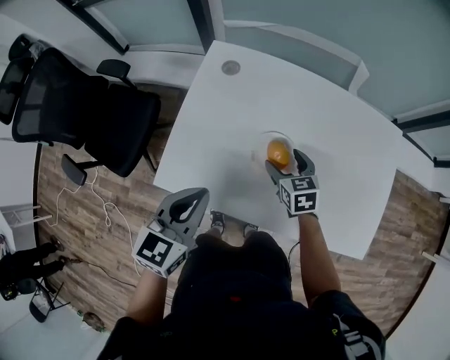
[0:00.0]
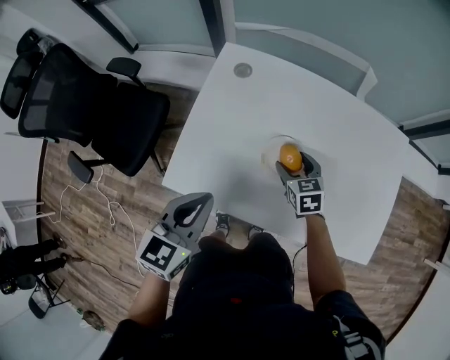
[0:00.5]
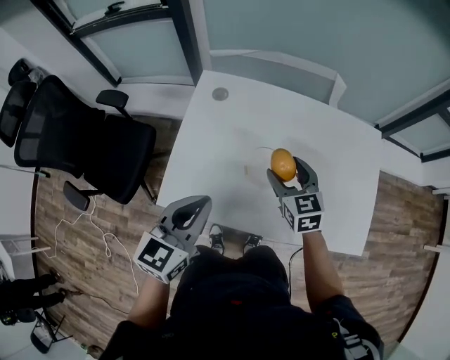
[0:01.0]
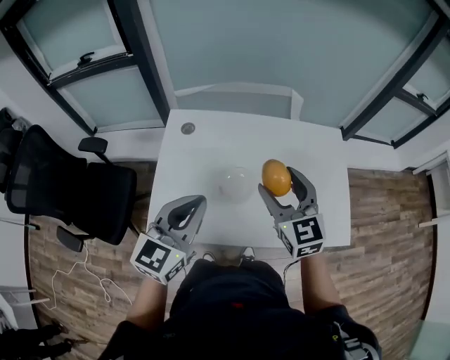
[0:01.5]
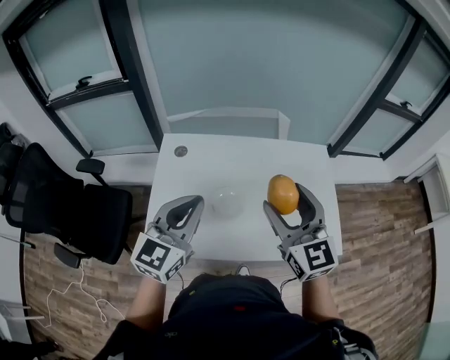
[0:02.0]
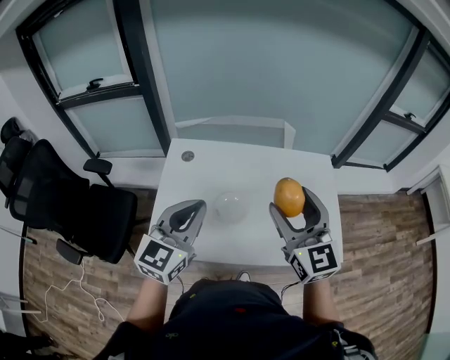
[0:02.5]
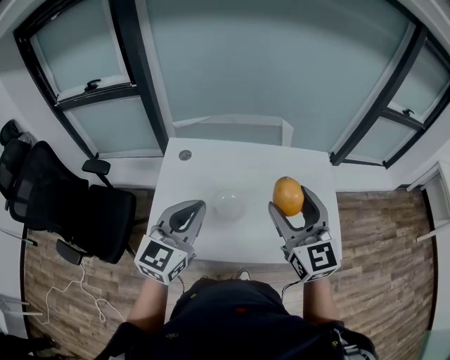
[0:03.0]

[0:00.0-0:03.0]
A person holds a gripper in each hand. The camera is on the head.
0:00.0 to 0:01.5: The left gripper moves upward, some 15 cm, and swivels roughly 20 degrees, while the right gripper moves upward, roughly 30 cm, and changes its angle by roughly 30 degrees.
0:01.5 to 0:03.0: The right gripper moves upward, backward and to the right, about 10 cm.

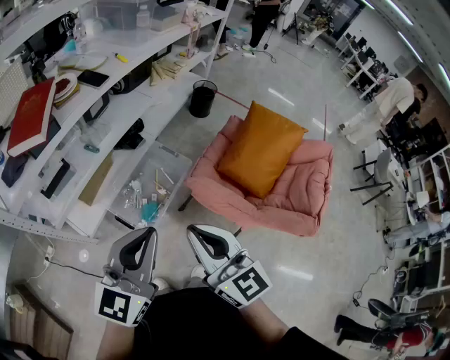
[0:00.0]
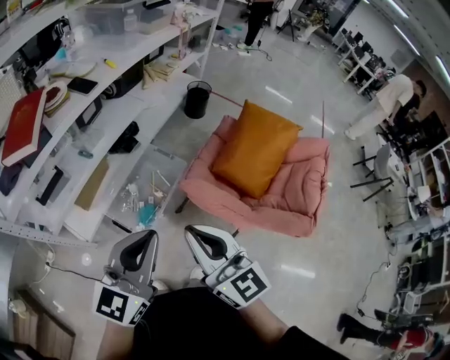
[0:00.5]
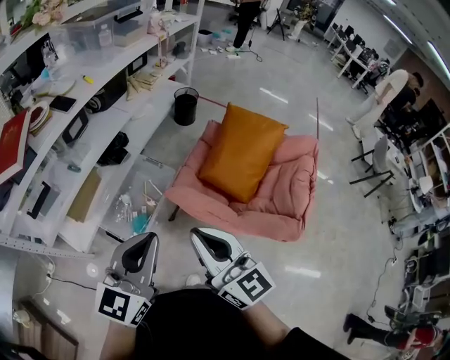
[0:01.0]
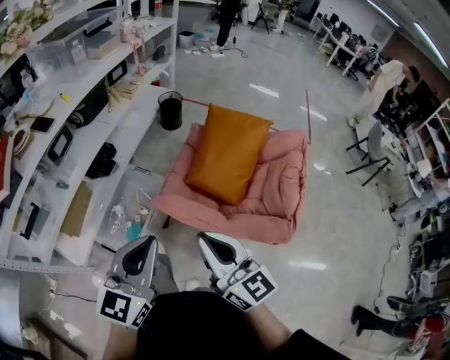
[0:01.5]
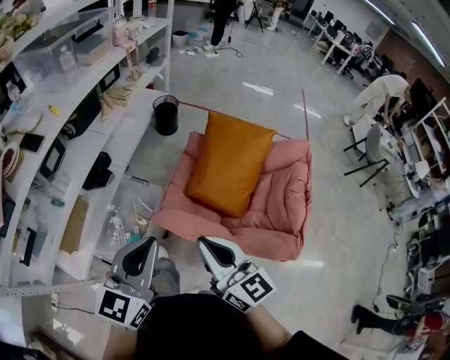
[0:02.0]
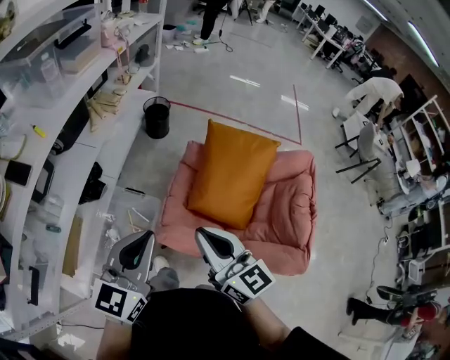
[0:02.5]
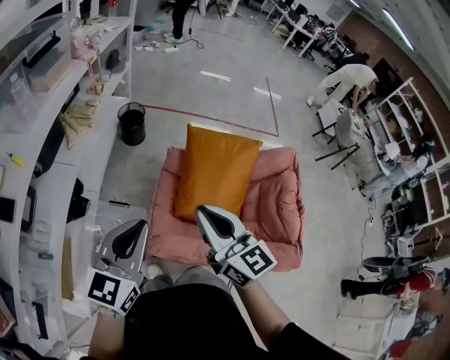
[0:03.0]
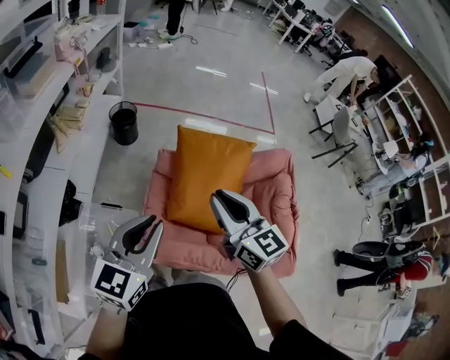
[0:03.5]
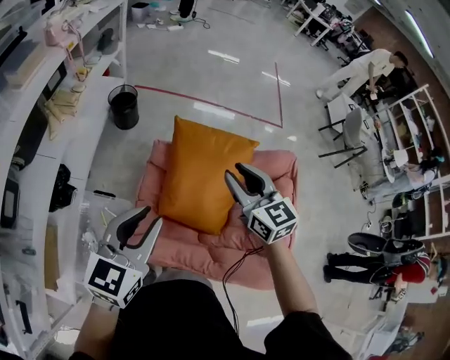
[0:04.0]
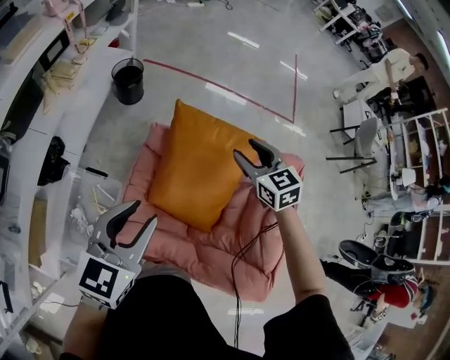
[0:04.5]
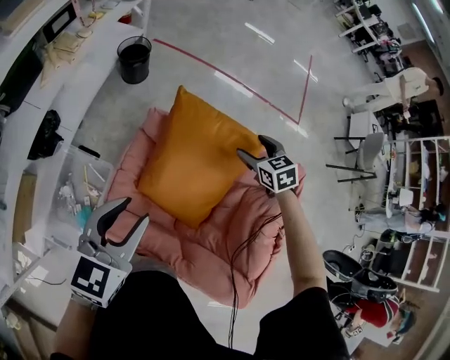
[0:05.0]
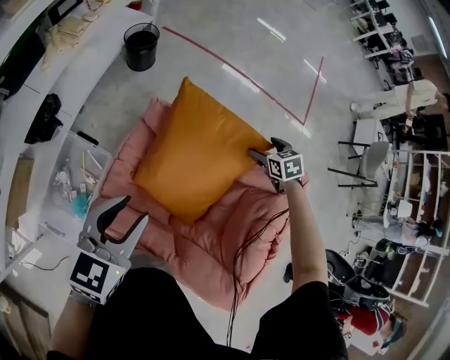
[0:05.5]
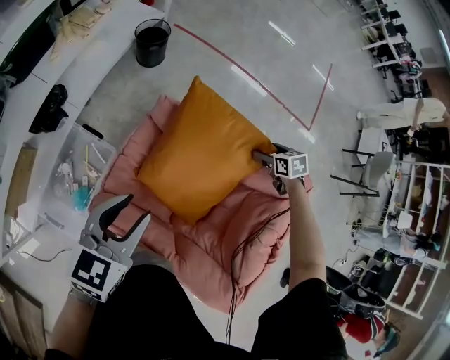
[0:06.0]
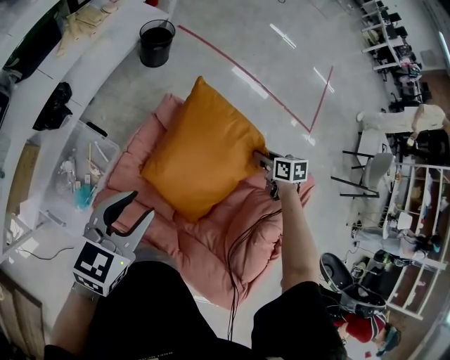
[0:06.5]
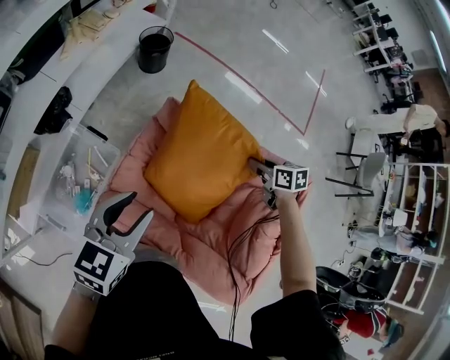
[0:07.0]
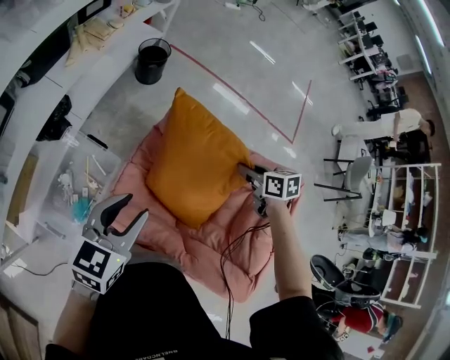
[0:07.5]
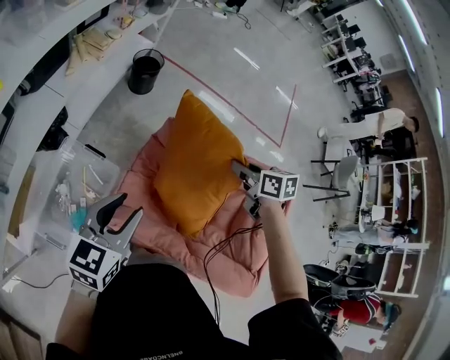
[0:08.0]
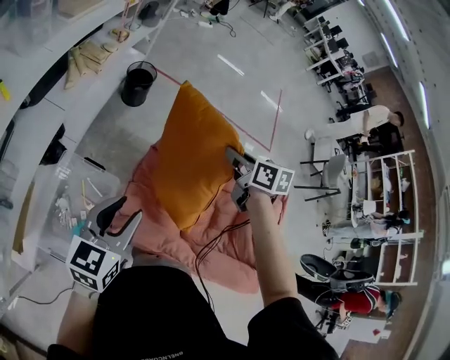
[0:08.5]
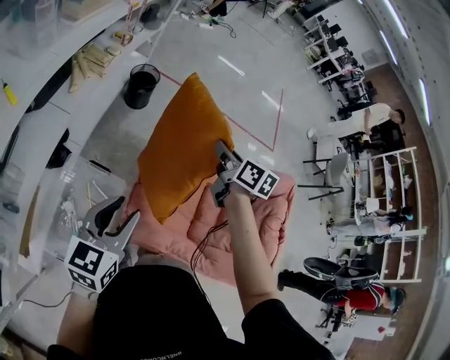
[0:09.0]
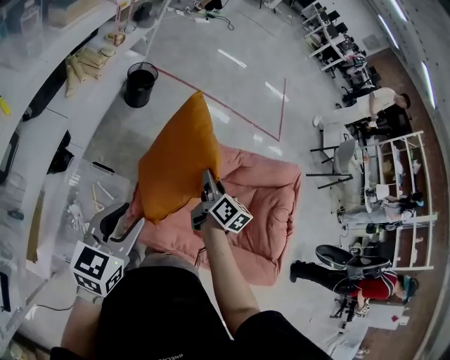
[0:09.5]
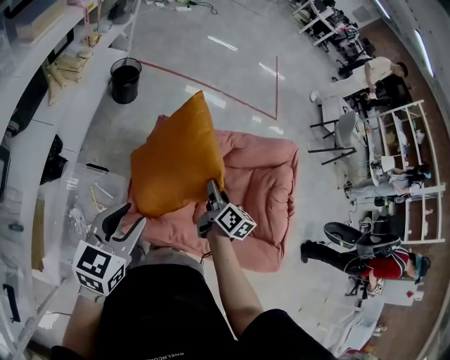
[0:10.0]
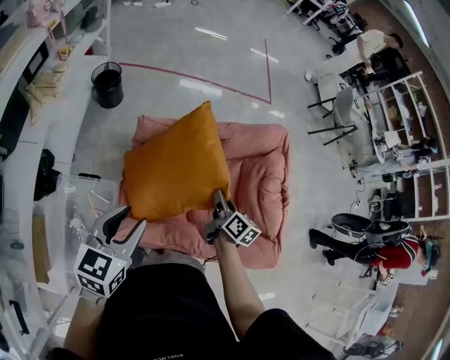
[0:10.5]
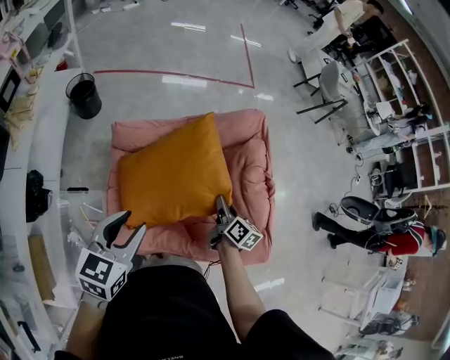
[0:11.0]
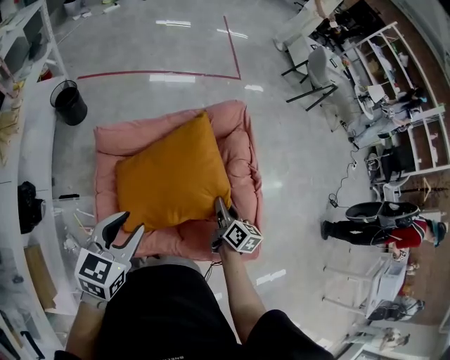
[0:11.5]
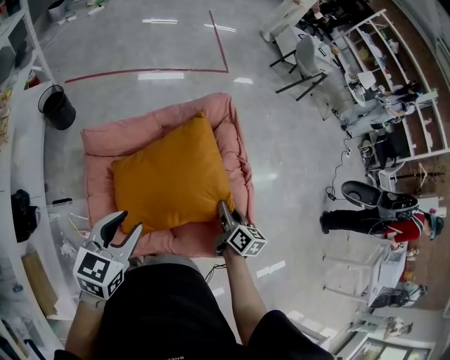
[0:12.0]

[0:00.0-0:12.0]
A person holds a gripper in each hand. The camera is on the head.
0:00.0 to 0:02.0: The two grippers go approximately 25 cm to the right and forward.
0:02.0 to 0:04.0: Both grippers move forward, roughly 35 cm. The right gripper changes its angle by approximately 30 degrees; the left gripper opens.
0:04.0 to 0:06.0: The right gripper is displaced downward, to the right and forward by some 40 cm, points its fingers some 50 degrees further downward, and opens its fingers; the left gripper is displaced downward and to the right by roughly 15 cm, and swivels roughly 20 degrees.
0:06.0 to 0:08.0: The right gripper is displaced to the left and upward by about 30 cm, changes its angle by some 20 degrees, and closes up, while the left gripper shifts about 15 cm to the left.
0:08.0 to 0:10.0: The right gripper ends up about 15 cm from where it was, and rotates roughly 50 degrees.
0:10.0 to 0:12.0: The left gripper goes some 25 cm to the right and forward, and turns by about 20 degrees. Meanwhile the right gripper is displaced to the right by about 30 cm.

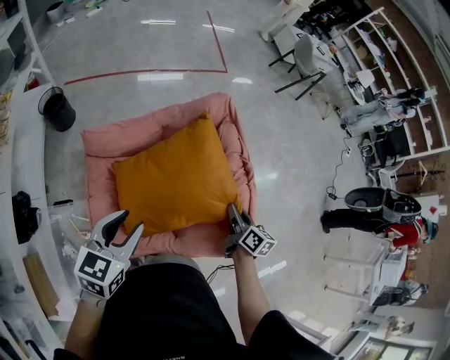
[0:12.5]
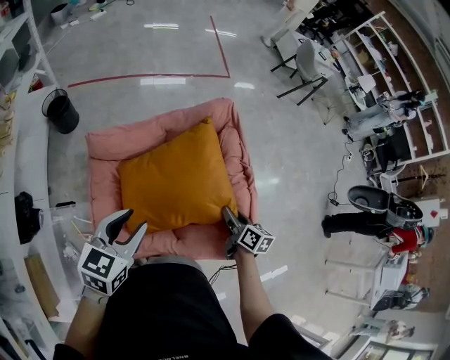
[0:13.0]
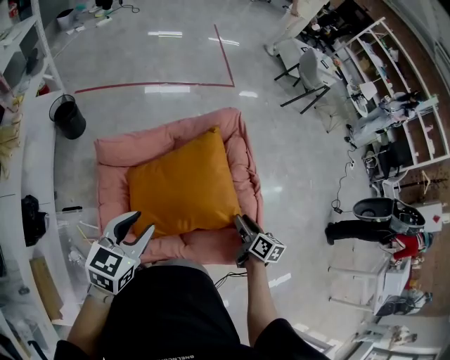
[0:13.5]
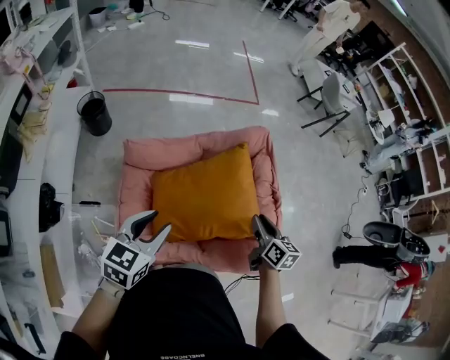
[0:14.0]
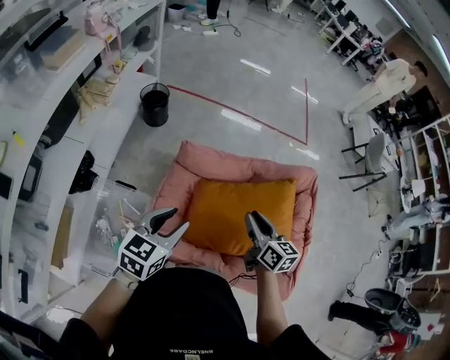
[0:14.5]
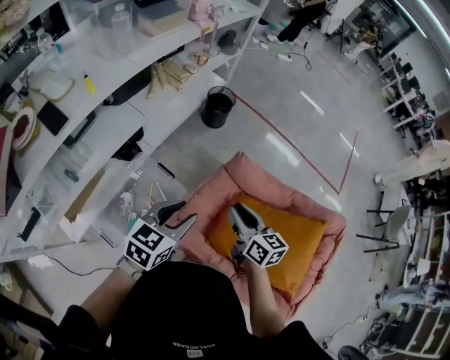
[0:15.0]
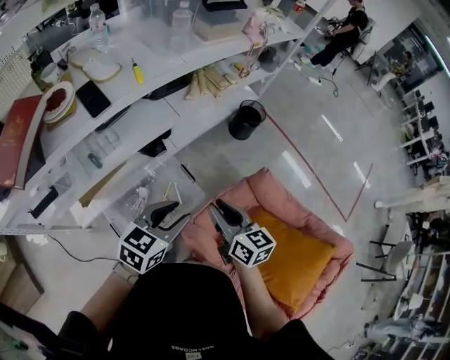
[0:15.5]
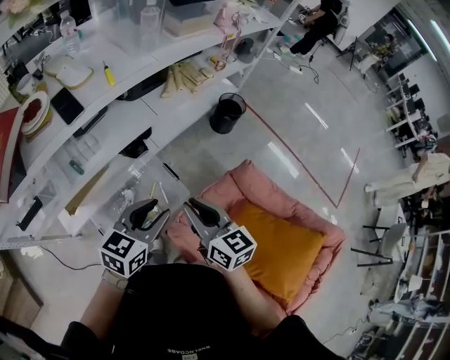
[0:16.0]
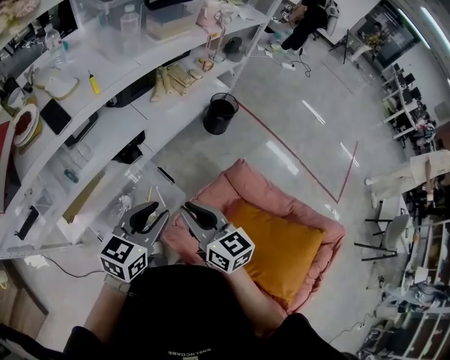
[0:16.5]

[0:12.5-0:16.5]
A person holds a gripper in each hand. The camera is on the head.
0:12.5 to 0:14.5: The right gripper changes place by some 30 cm, and rotates about 40 degrees. Meanwhile the left gripper changes place by roughly 15 cm.
0:14.5 to 0:16.5: The right gripper moves some 40 cm, and swivels approximately 50 degrees. The left gripper shifts by approximately 20 cm, and changes its angle by roughly 40 degrees.

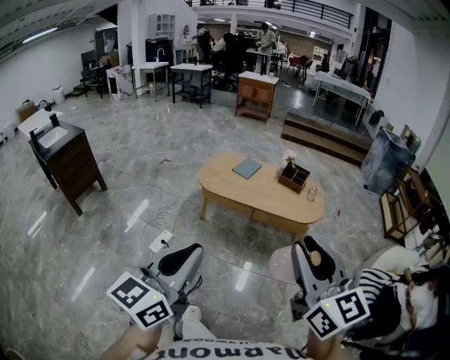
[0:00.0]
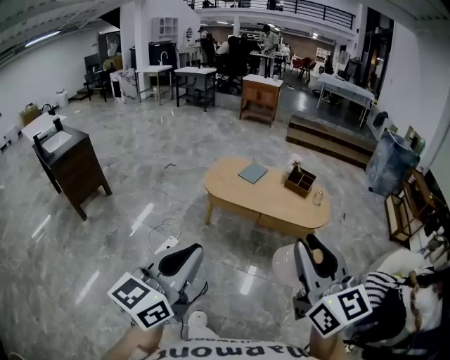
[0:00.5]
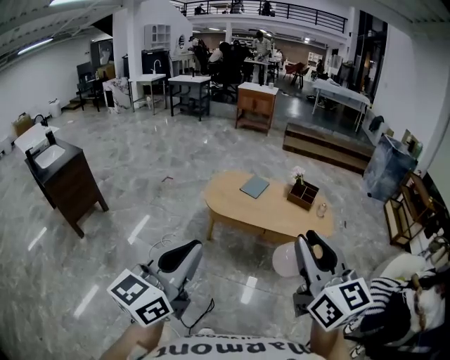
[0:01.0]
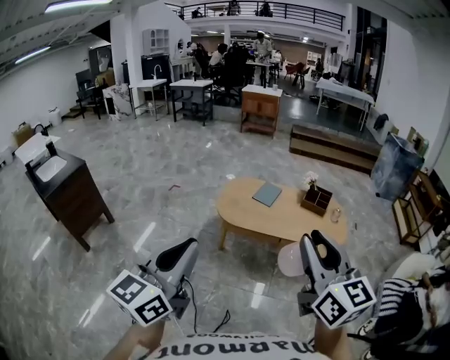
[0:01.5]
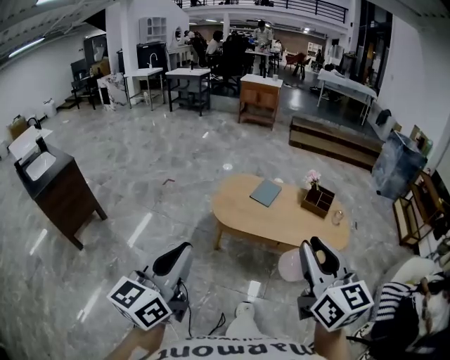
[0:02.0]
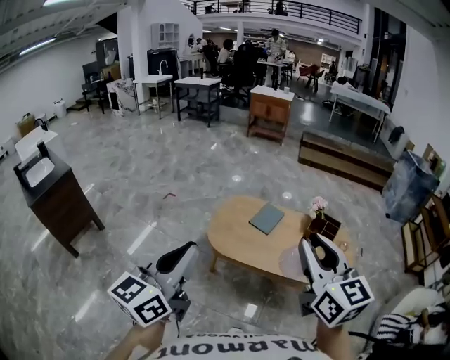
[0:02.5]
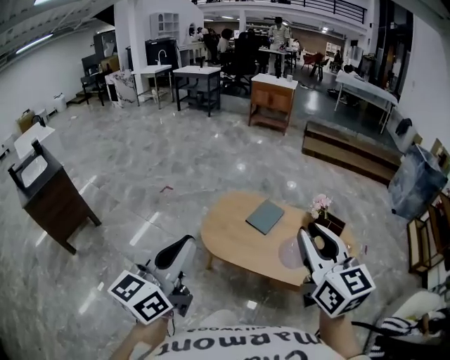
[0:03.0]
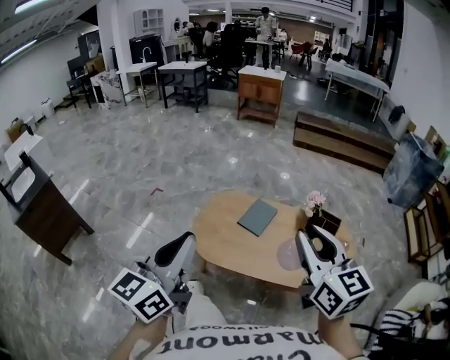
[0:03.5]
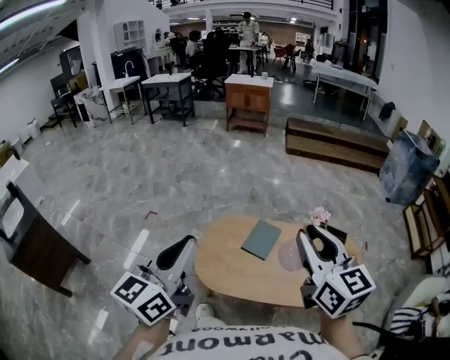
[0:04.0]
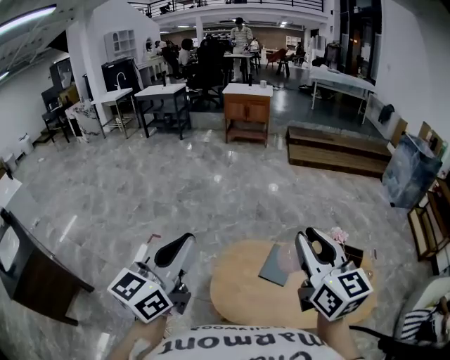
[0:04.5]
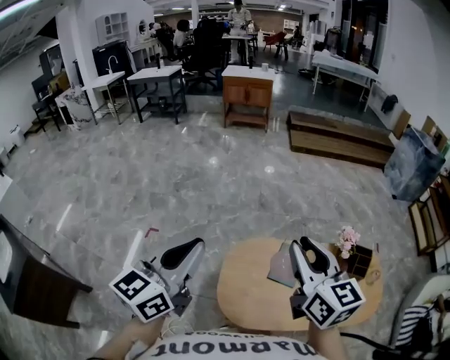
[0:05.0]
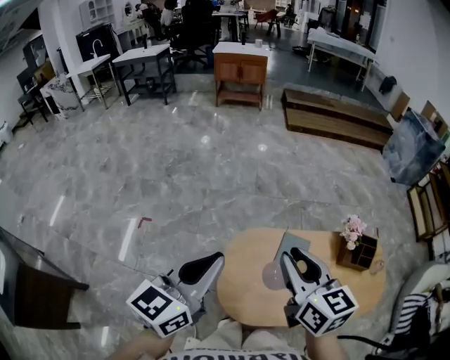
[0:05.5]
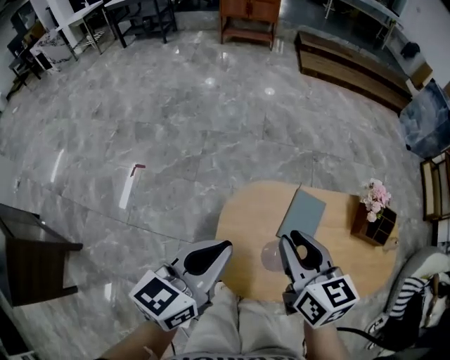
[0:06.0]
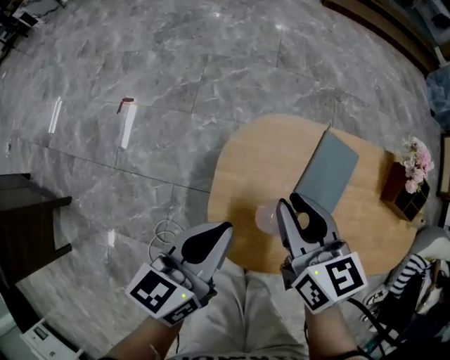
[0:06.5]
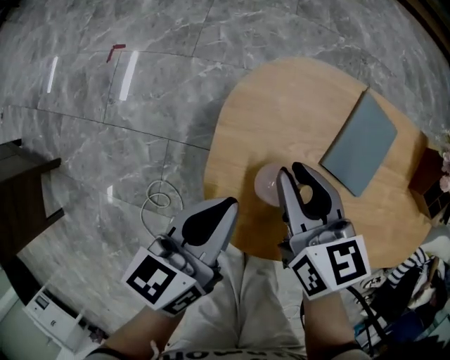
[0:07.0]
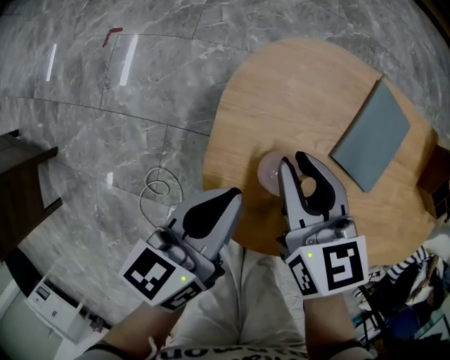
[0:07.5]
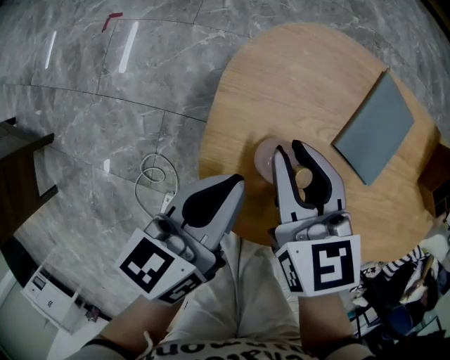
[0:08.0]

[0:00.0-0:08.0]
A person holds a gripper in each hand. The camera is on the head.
0:00.0 to 0:02.0: Both grippers travel together forward and to the left, roughly 30 cm.
0:02.0 to 0:04.0: The pair of grippers is taken forward, some 40 cm.
0:04.0 to 0:06.0: The left gripper heads forward, downward and to the left, covering about 35 cm, and rotates some 30 degrees. Meanwhile the right gripper goes about 40 cm downward, to the left and forward, and swivels some 30 degrees.
0:06.0 to 0:08.0: The grippers both shift downward by approximately 30 cm. The left gripper swivels about 30 degrees.
